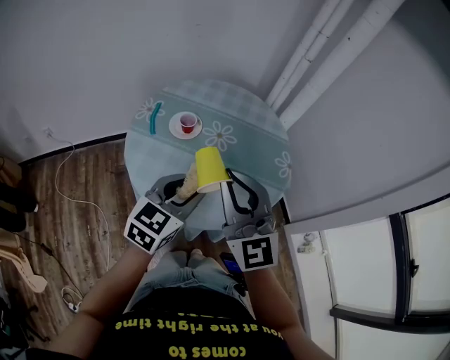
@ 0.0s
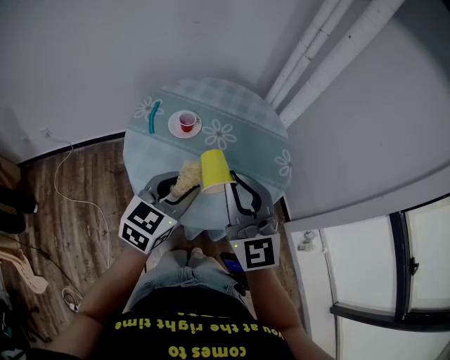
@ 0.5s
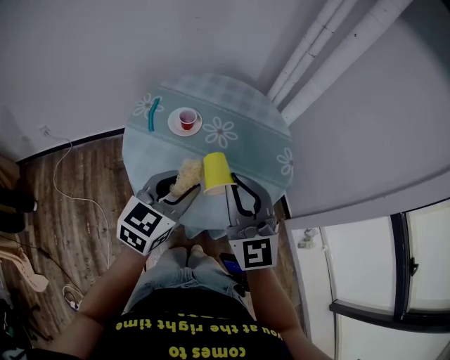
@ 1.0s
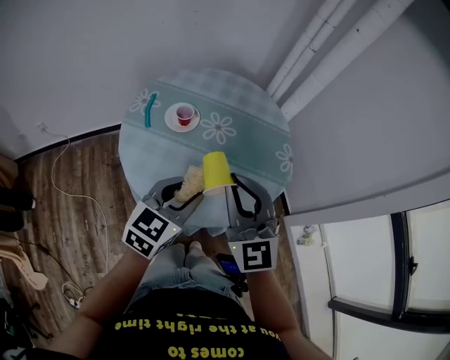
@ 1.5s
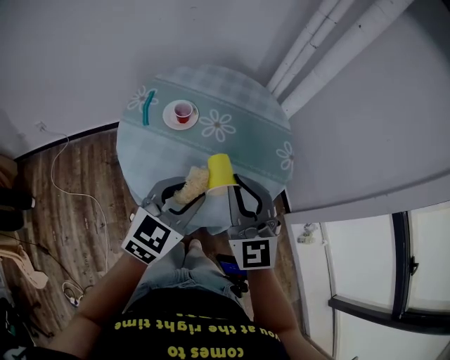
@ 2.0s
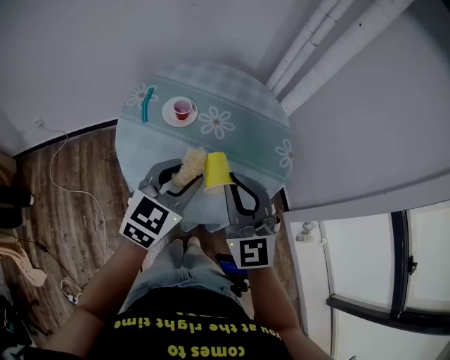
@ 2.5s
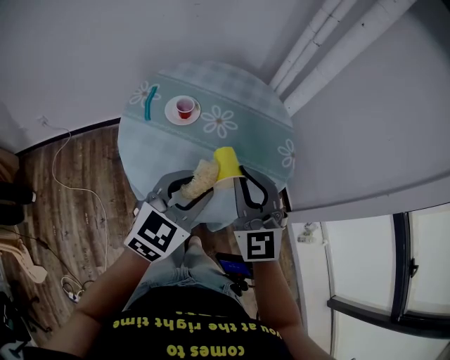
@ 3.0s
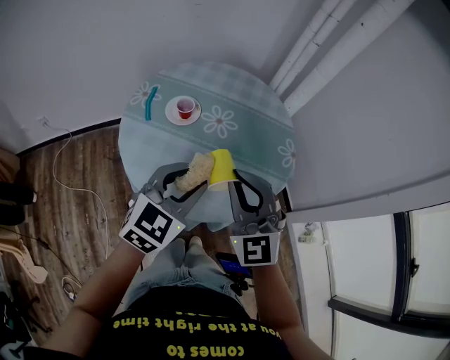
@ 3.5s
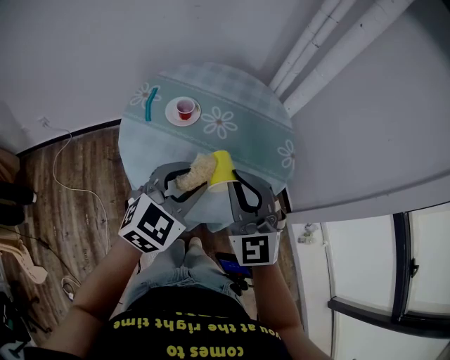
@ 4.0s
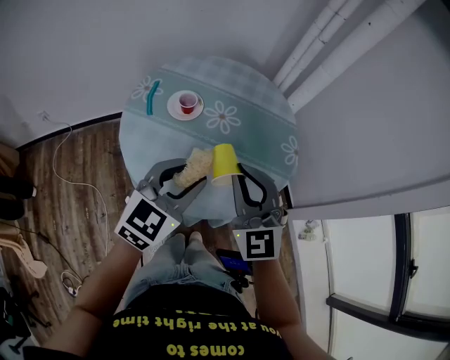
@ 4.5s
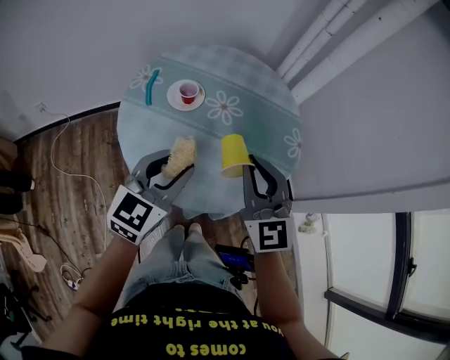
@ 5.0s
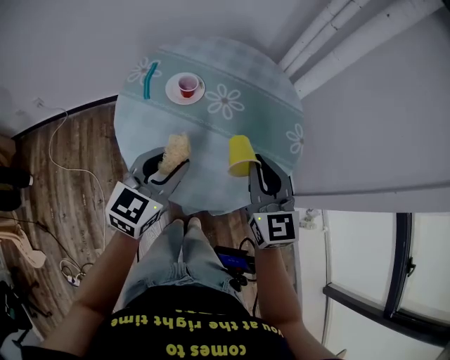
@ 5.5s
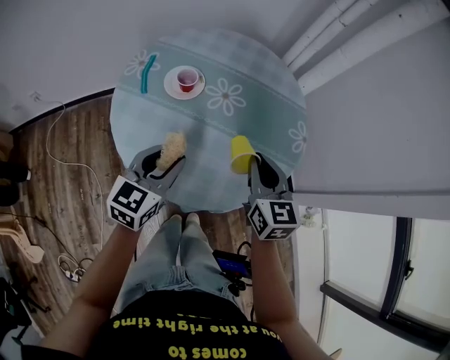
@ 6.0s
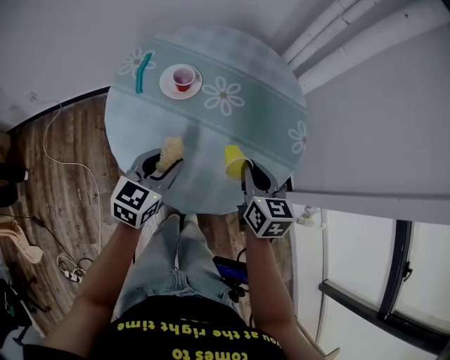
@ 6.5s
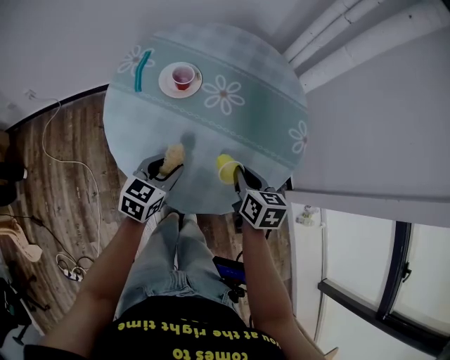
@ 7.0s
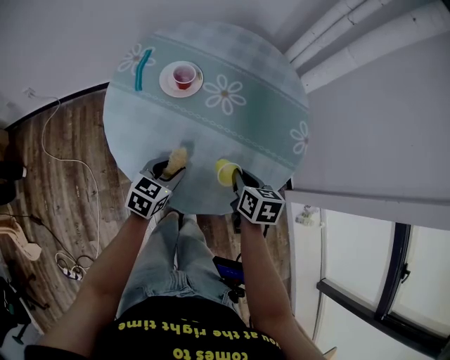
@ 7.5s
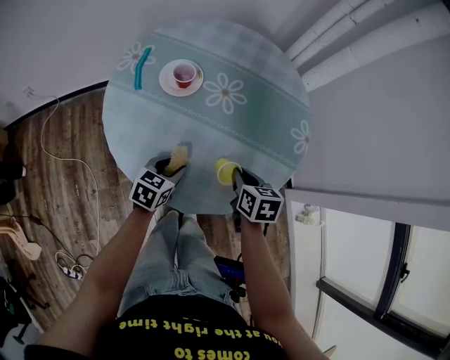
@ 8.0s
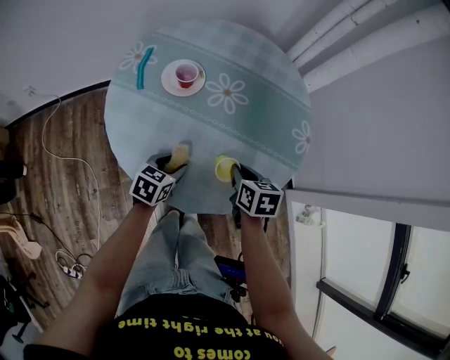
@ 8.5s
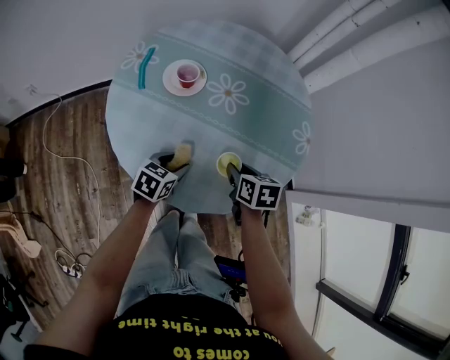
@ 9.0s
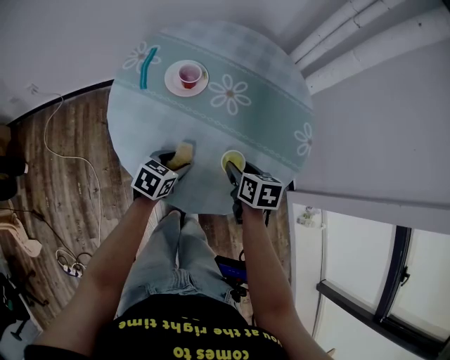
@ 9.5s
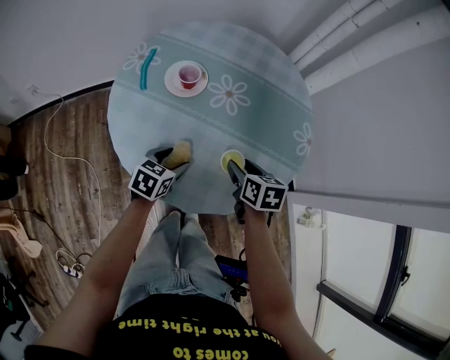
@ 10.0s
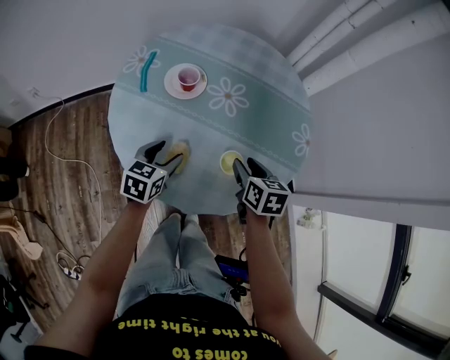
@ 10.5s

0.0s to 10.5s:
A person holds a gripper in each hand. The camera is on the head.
0.0s to 2.0s: The right gripper moves downward, some 10 cm.
2.0s to 4.0s: The grippers stay close to where they were, moving slightly.
4.0s to 6.5s: The left gripper travels downward and to the left by roughly 15 cm, and changes its angle by about 30 degrees; the right gripper moves downward and forward, some 20 cm, and twists some 50 degrees clockwise, seen from behind.
6.5s to 8.5s: The grippers both shift downward by about 10 cm. The right gripper changes its angle by roughly 20 degrees, while the left gripper rotates approximately 20 degrees.
8.5s to 10.5s: The right gripper opens up, while the left gripper is displaced upward by roughly 5 cm.

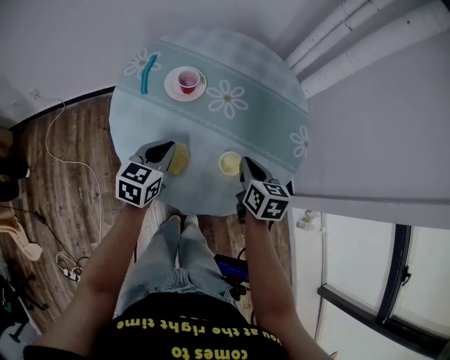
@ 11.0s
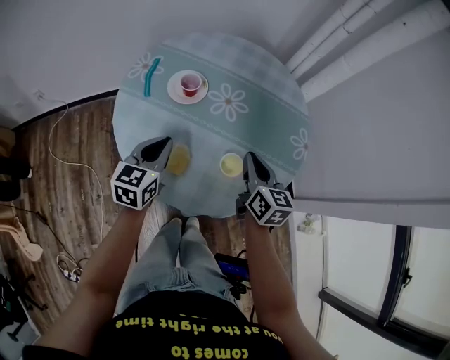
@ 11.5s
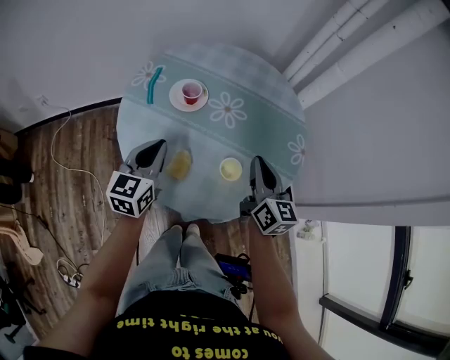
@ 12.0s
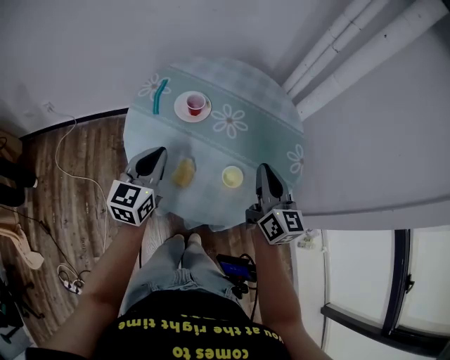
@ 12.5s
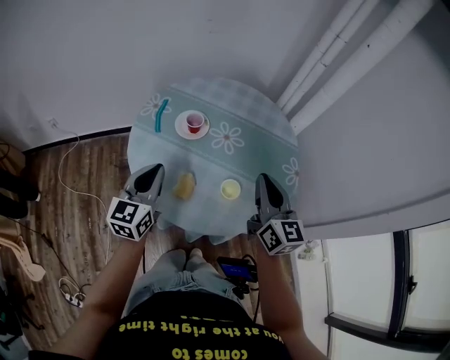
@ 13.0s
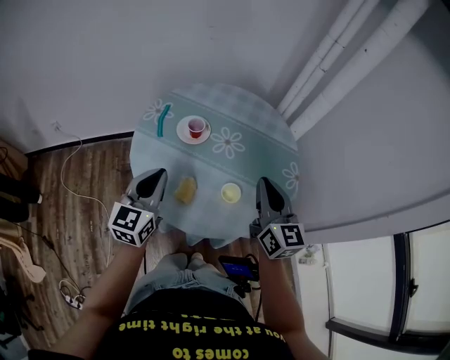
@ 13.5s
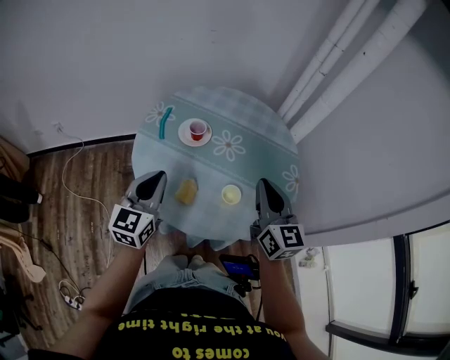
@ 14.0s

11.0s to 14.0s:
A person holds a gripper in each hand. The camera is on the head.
11.0s to 12.5s: The two grippers go approximately 15 cm upward. The right gripper points its fingers some 30 degrees further upward. The left gripper rotates about 20 degrees.
12.5s to 14.0s: The two grippers go approximately 5 cm upward.

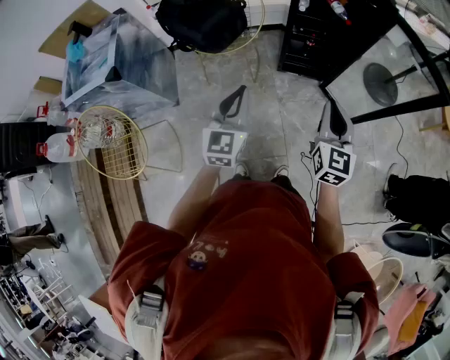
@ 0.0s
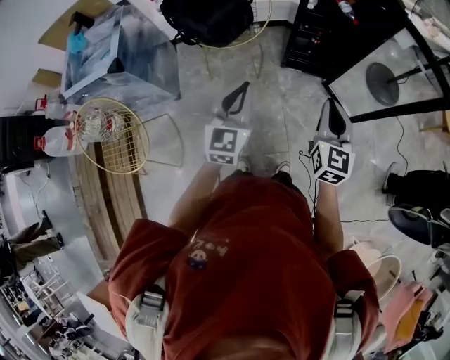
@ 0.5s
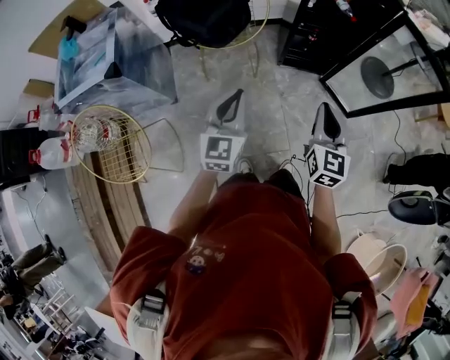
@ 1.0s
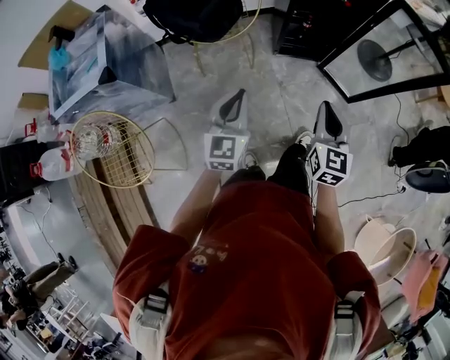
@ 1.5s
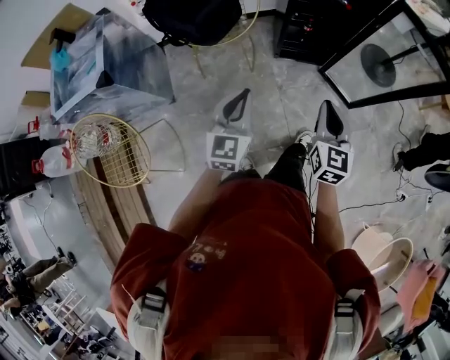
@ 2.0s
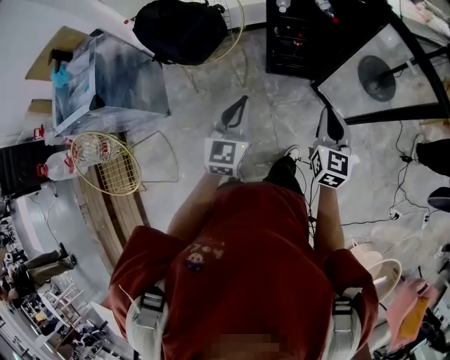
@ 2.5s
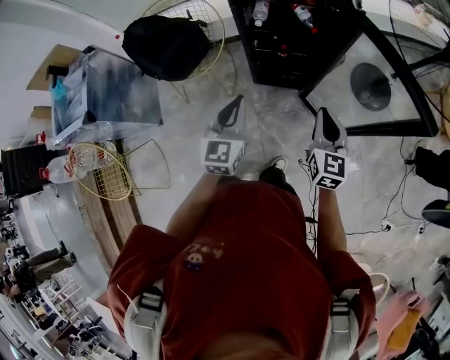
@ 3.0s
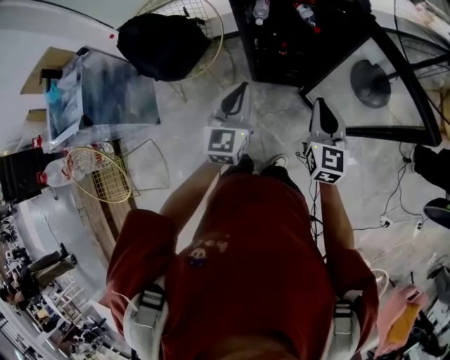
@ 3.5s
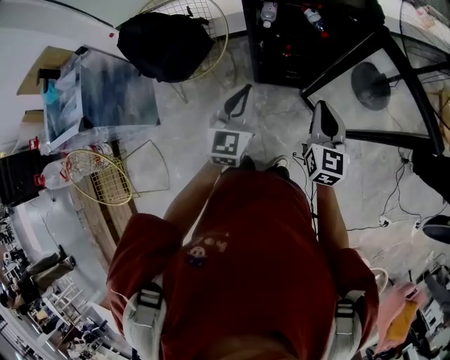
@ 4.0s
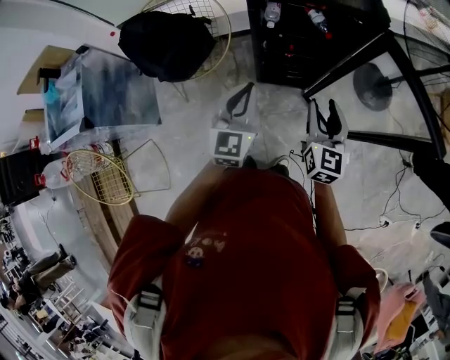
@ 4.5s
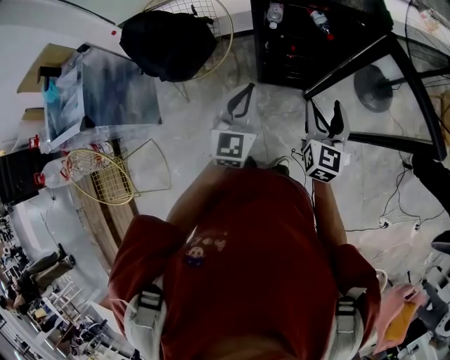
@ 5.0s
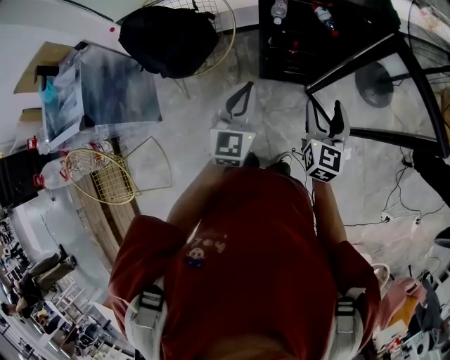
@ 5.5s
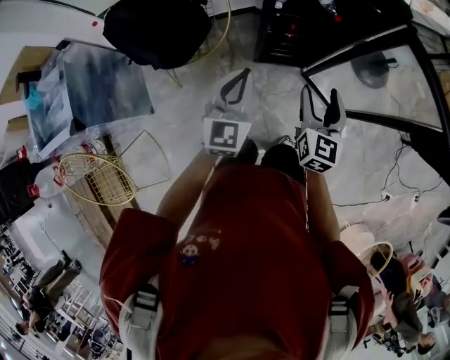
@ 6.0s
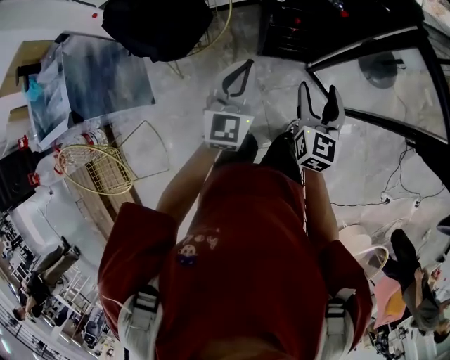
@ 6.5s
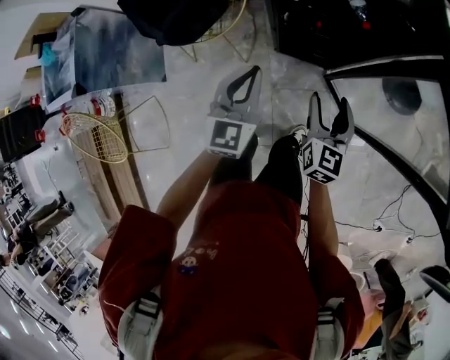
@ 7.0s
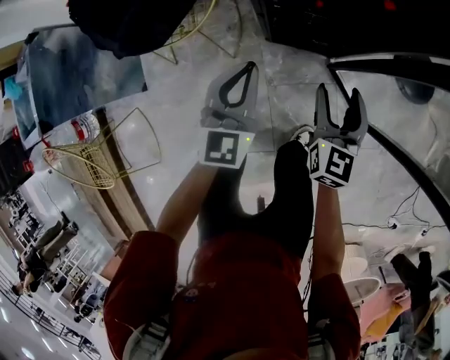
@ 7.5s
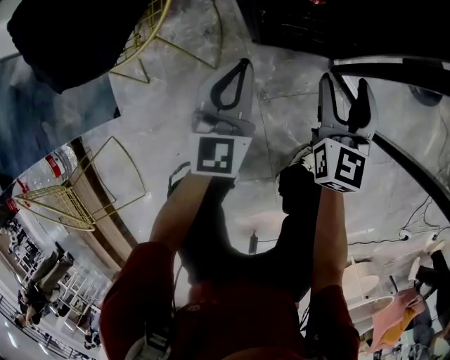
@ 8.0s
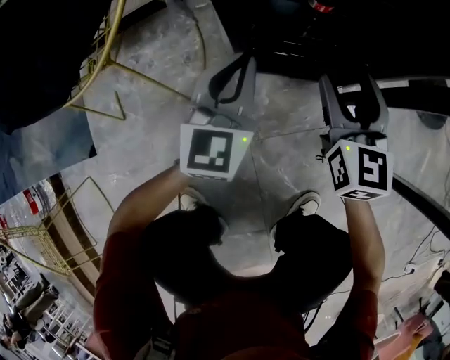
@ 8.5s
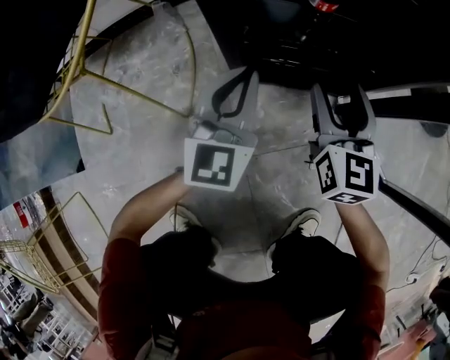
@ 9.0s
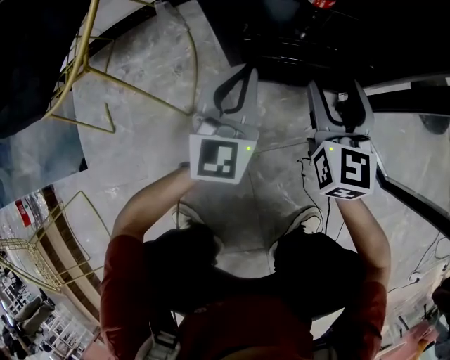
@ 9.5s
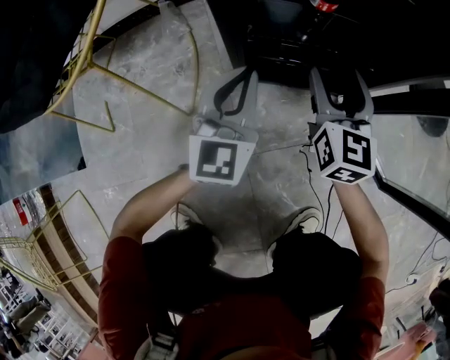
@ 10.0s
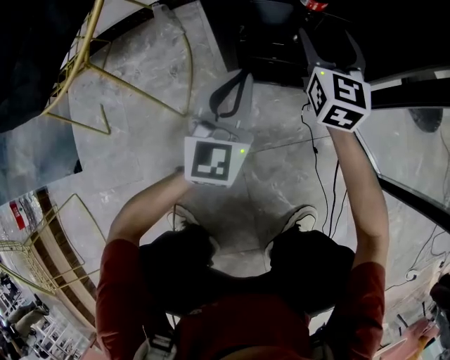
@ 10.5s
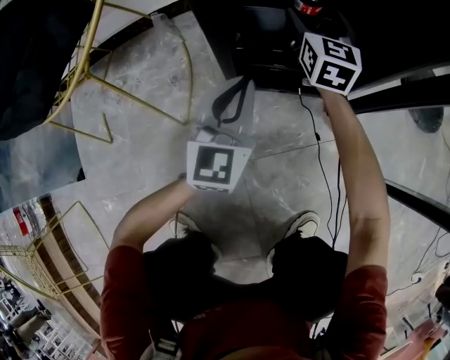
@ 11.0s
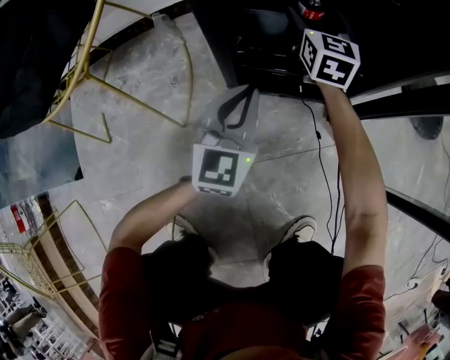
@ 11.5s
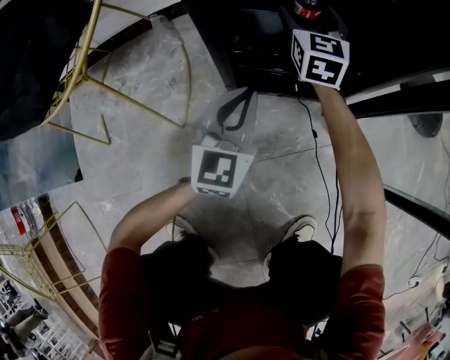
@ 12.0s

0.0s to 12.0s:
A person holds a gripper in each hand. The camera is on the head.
0.0s to 2.0s: The right gripper goes some 10 cm to the left and downward.
2.0s to 4.0s: The two grippers go about 35 cm forward and to the right.
4.0s to 6.0s: The grippers both shift to the left by approximately 10 cm. The right gripper opens.
6.0s to 8.0s: The grippers both shift downward by some 40 cm.
8.0s to 10.0s: The left gripper heads downward, covering roughly 20 cm. Meanwhile the right gripper moves downward and forward, some 20 cm.
10.0s to 12.0s: The right gripper goes roughly 15 cm forward.

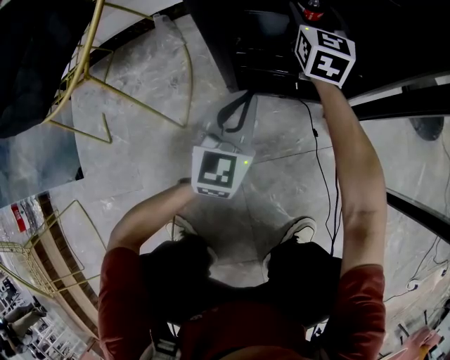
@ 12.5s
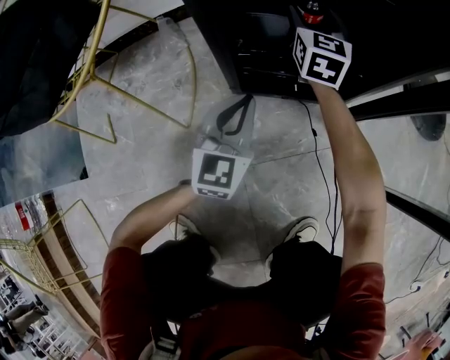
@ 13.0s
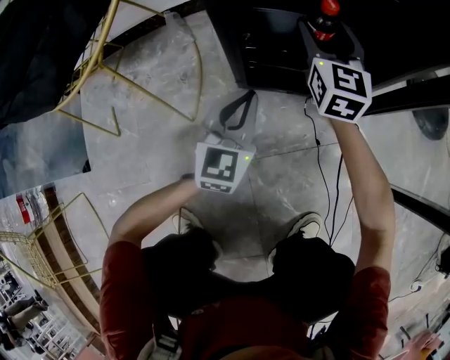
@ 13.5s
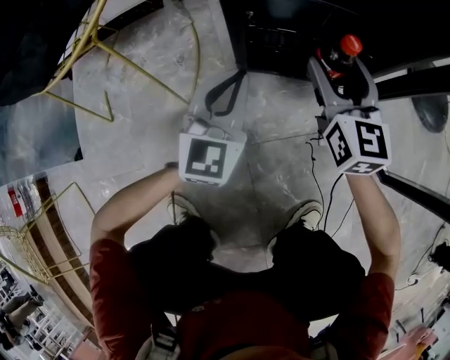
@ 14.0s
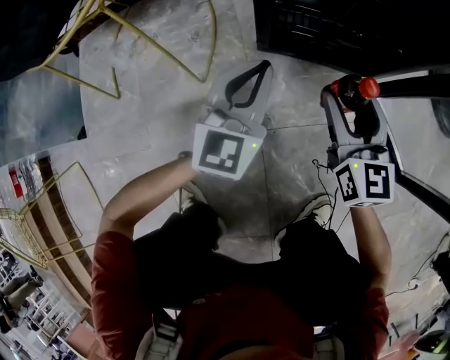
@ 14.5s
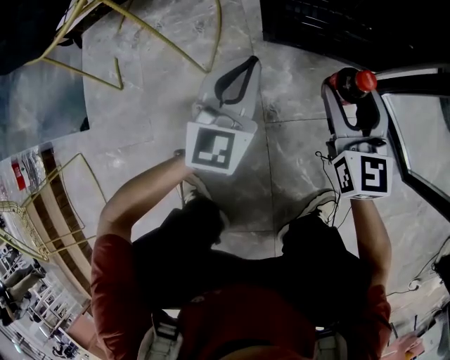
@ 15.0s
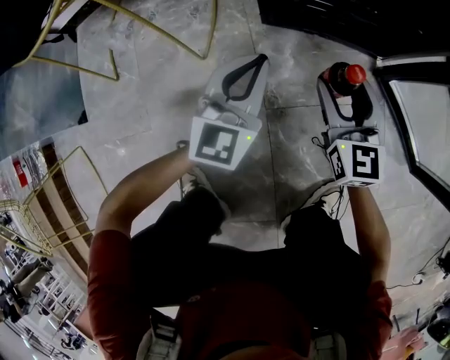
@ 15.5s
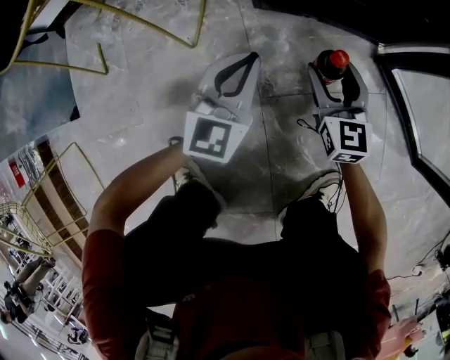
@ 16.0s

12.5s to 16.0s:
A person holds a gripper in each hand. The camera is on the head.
12.5s to 14.5s: The left gripper goes approximately 5 cm backward. Meanwhile the right gripper shifts about 30 cm backward.
14.5s to 16.0s: Both grippers travel together downward, some 15 cm.
